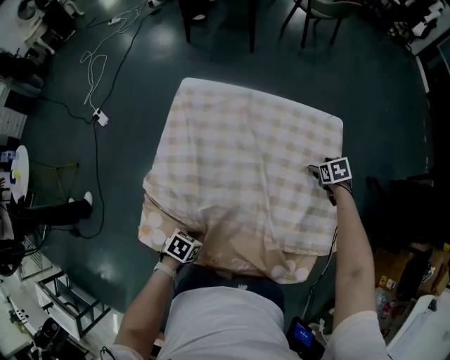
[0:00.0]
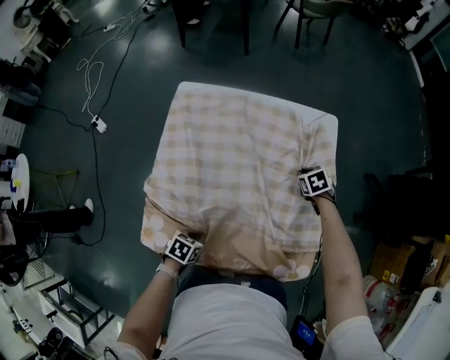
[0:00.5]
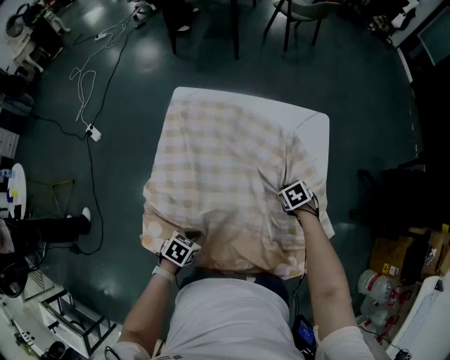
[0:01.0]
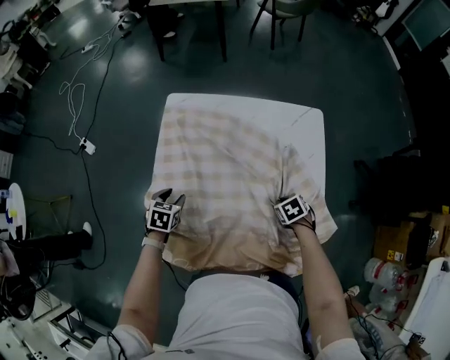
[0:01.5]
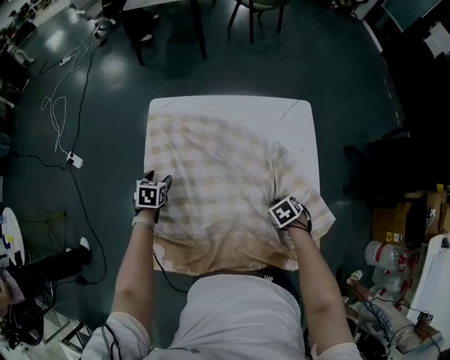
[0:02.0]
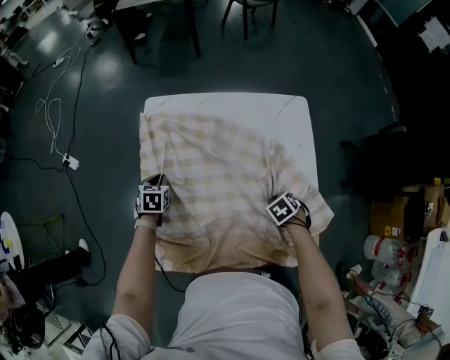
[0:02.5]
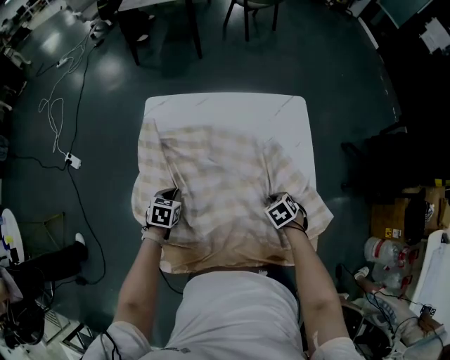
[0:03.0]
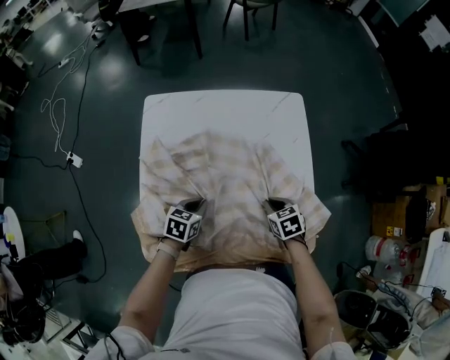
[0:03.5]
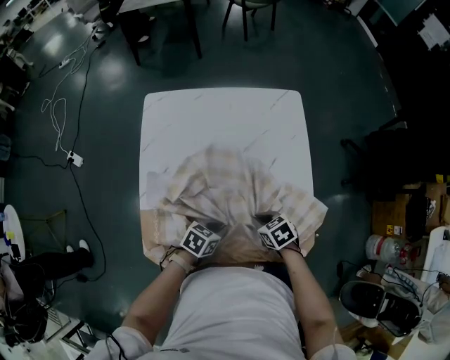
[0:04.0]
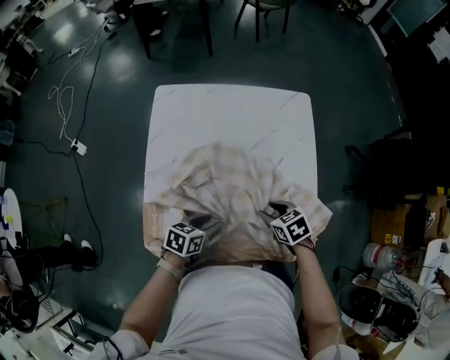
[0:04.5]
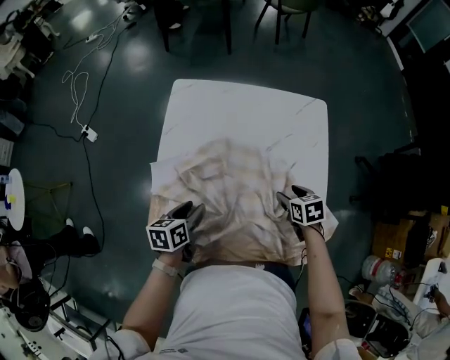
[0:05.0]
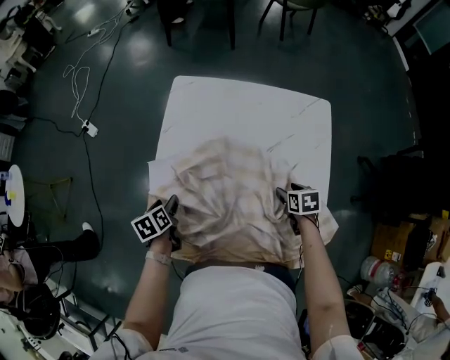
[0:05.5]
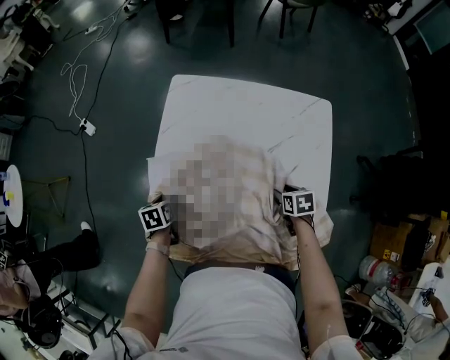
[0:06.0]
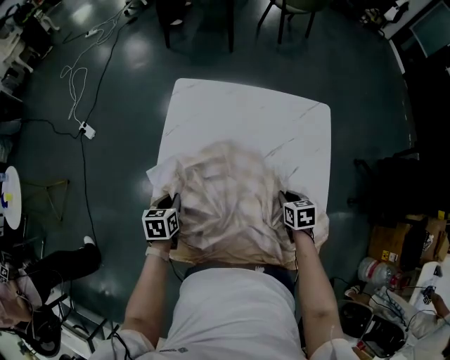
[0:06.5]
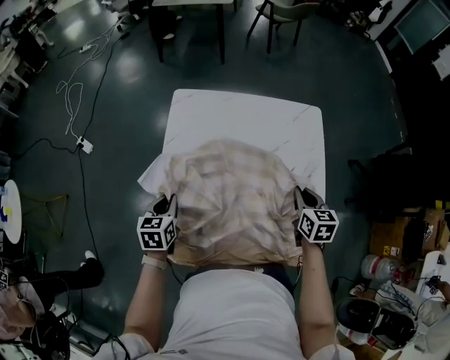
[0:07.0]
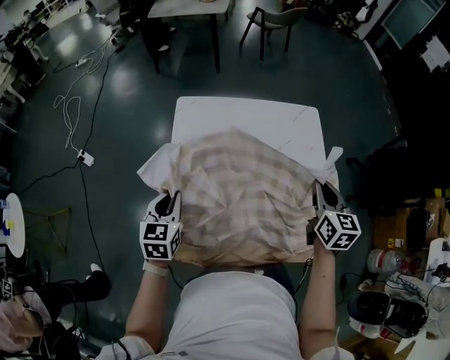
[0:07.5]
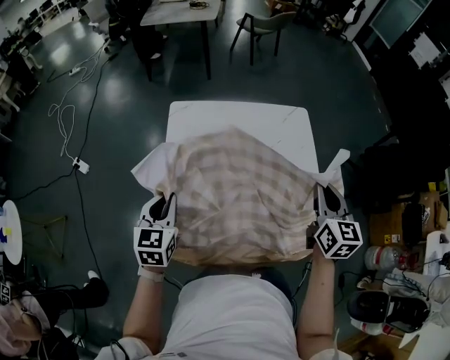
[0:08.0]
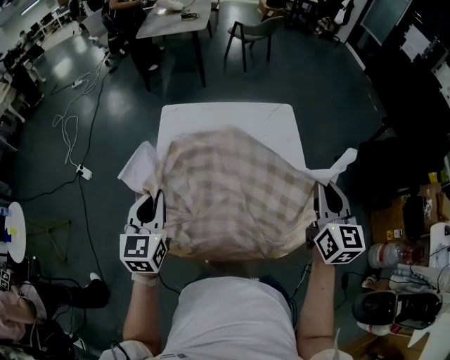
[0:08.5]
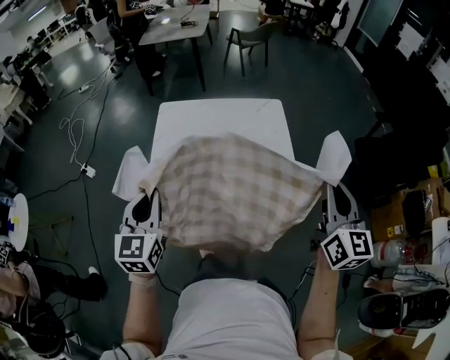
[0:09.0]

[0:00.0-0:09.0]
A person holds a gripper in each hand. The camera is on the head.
0:00.0 to 0:02.0: The right gripper moves about 25 cm, and closes up; the left gripper changes place by approximately 30 cm, turns by about 30 degrees, and opens up.
0:02.0 to 0:04.5: The left gripper ends up about 30 cm from where it was, changes its angle by approximately 40 degrees, and closes its fingers. Meanwhile the right gripper moves roughly 10 cm, changes its angle by about 20 degrees, and opens.
0:04.5 to 0:07.0: The left gripper heads to the left and forward, covering about 20 cm, changes its angle by approximately 40 degrees, and closes up; the right gripper goes some 15 cm upward, forward and to the right, rotates roughly 40 degrees, and closes.
0:07.0 to 0:09.0: Both grippers travel together upward and backward, roughly 30 cm. The right gripper points its fingers roughly 40 degrees further upward, while the left gripper changes its angle by approximately 30 degrees.

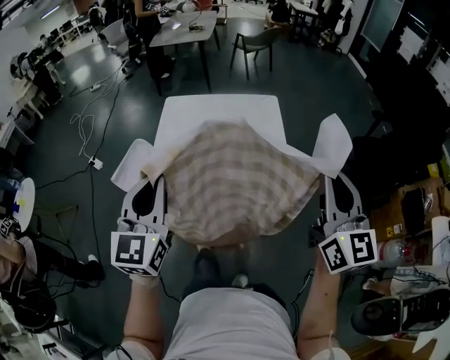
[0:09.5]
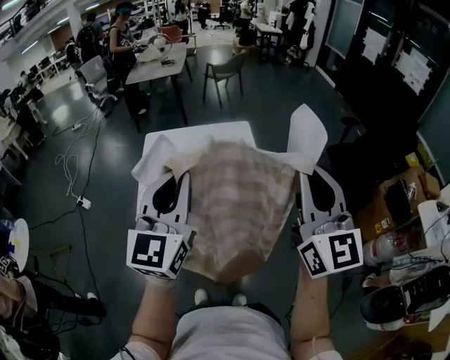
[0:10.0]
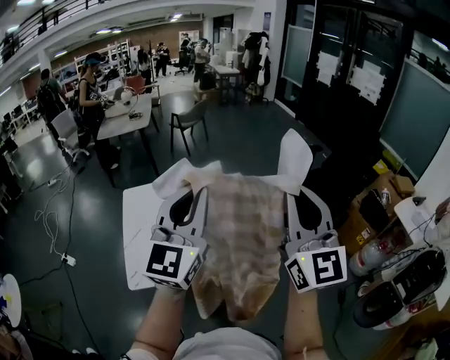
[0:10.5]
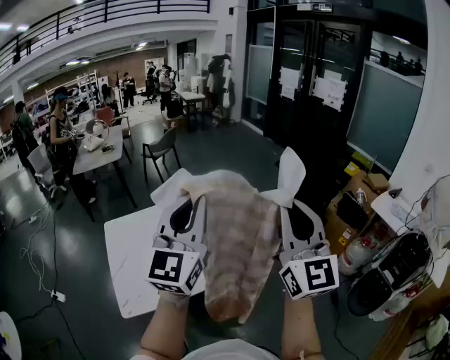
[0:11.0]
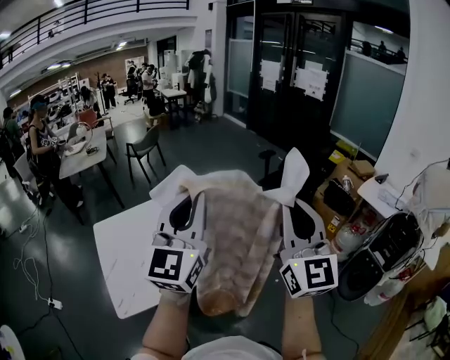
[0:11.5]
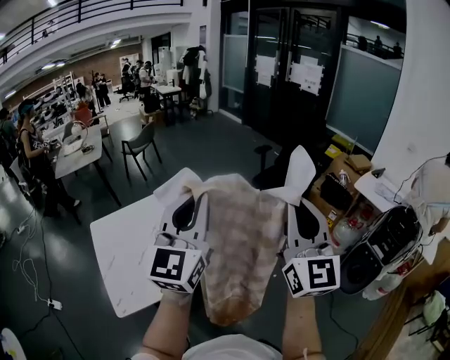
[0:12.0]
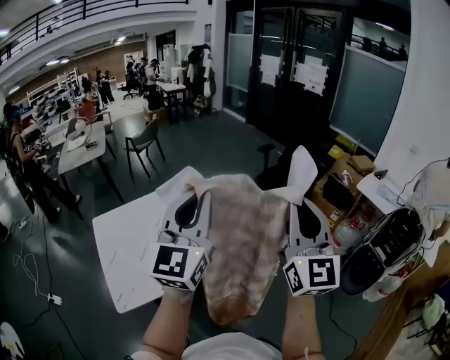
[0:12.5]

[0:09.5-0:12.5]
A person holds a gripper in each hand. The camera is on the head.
0:09.5 to 0:11.0: Both grippers move upward, approximately 20 cm. The left gripper turns by roughly 40 degrees, while the right gripper turns by about 30 degrees.
0:11.0 to 0:12.5: The left gripper shifts by about 5 cm. Meanwhile the right gripper shifts about 5 cm to the right.

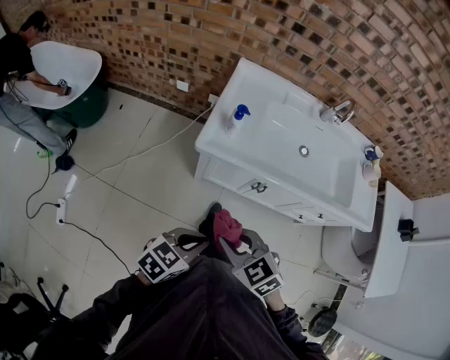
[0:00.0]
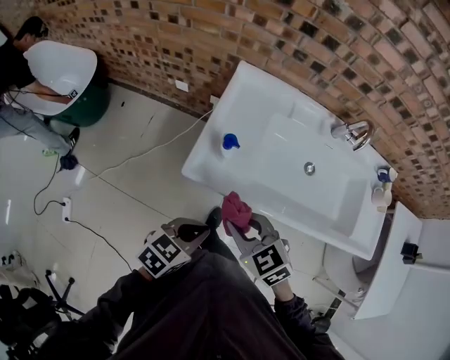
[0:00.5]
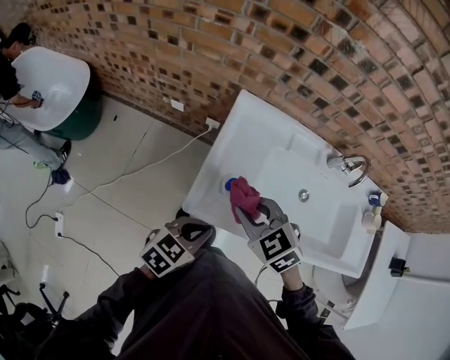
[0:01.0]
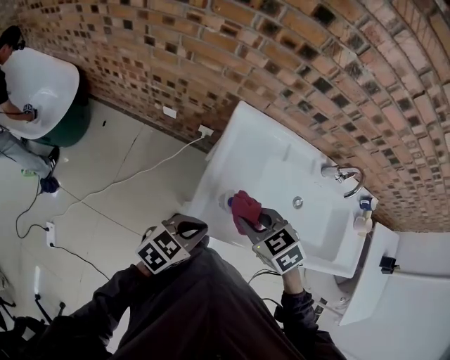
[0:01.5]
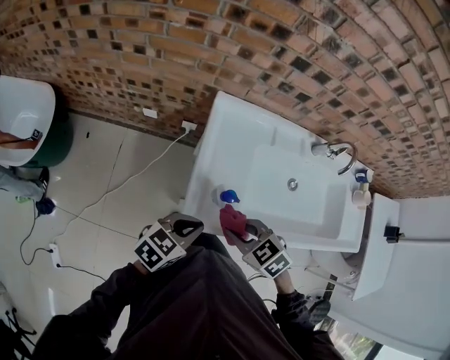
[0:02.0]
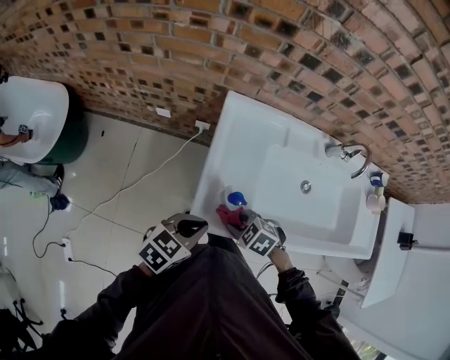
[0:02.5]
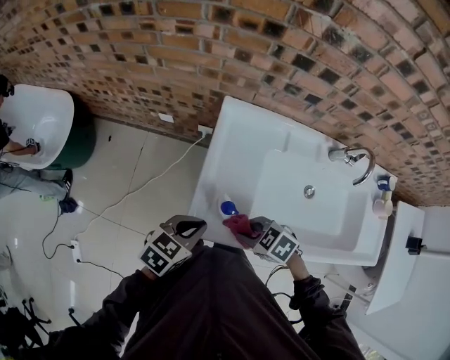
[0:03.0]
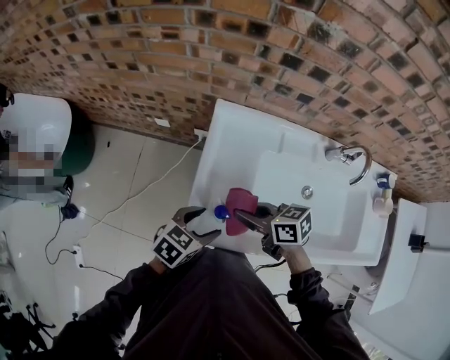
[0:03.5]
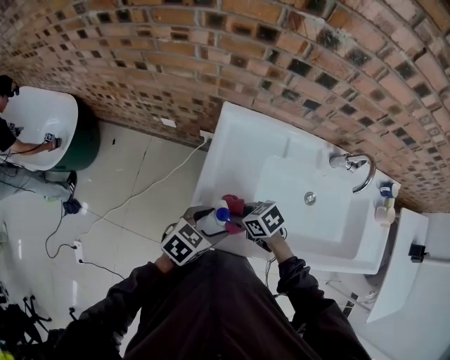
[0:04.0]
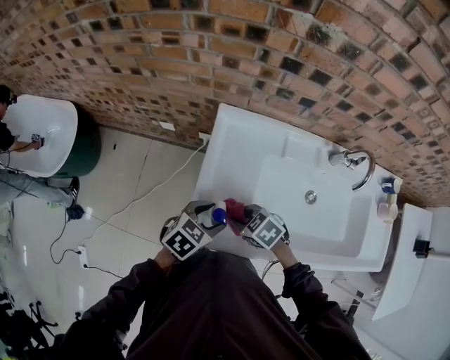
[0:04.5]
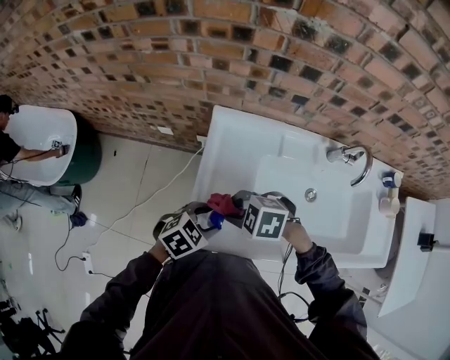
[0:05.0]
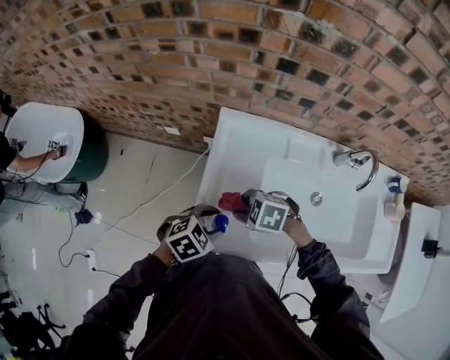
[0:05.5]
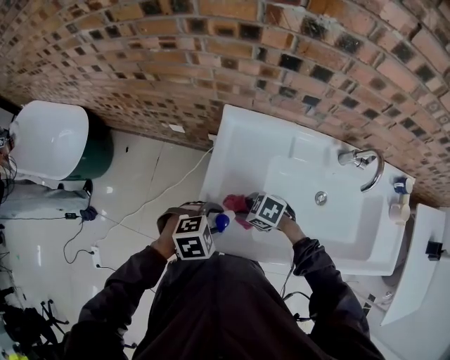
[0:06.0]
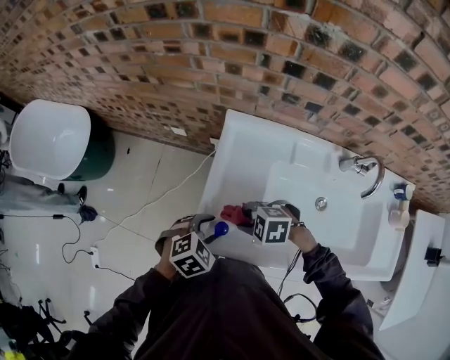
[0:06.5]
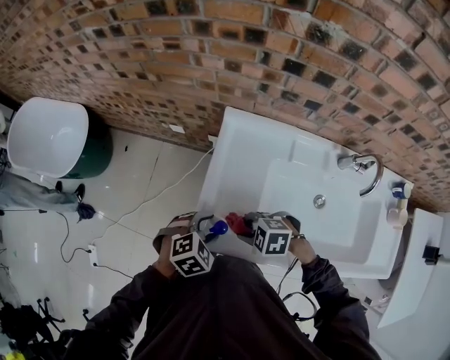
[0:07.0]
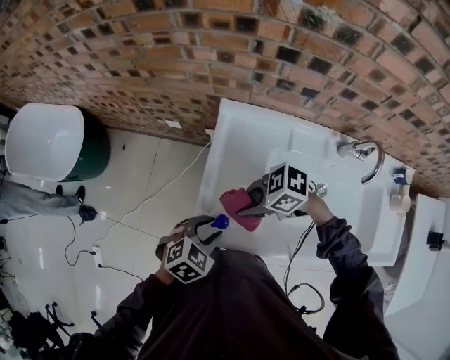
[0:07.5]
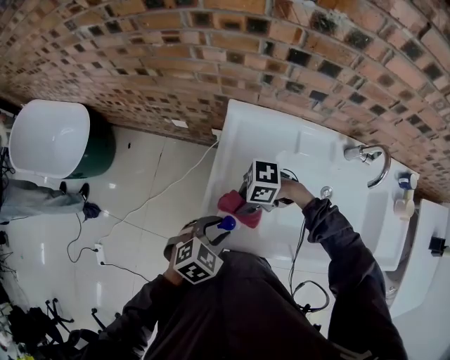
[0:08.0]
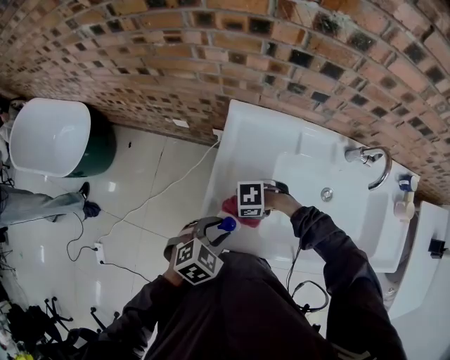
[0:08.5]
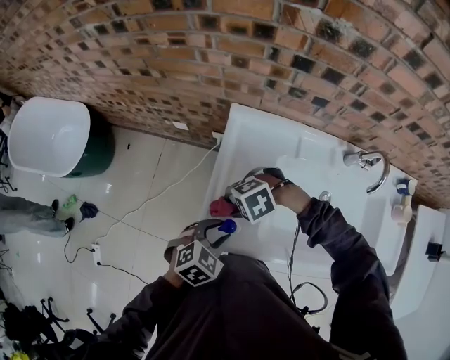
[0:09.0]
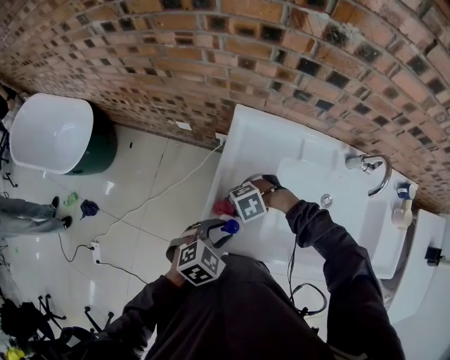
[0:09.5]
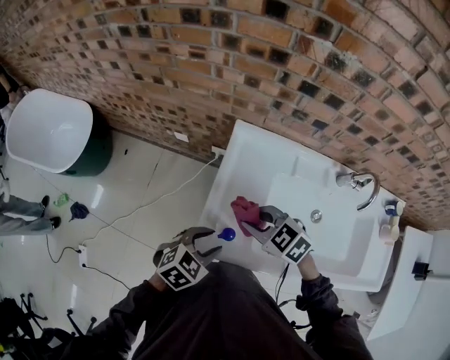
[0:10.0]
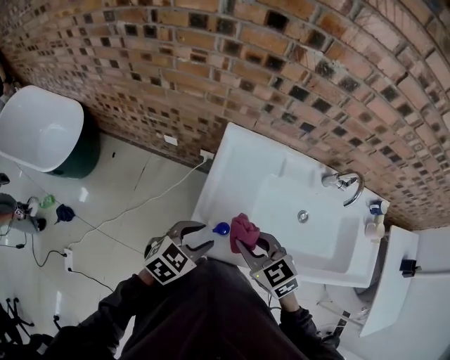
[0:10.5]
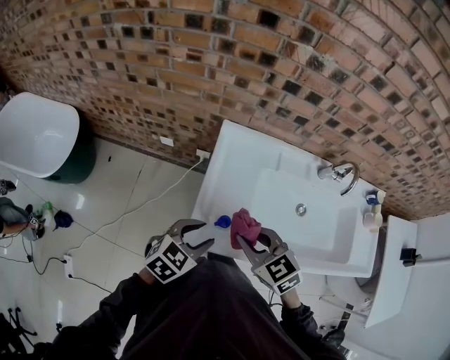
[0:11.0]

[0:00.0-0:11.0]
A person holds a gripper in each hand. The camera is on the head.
0:00.0 to 0:02.0: The right gripper ends up roughly 30 cm from where it was. The left gripper moves approximately 35 cm.
0:02.0 to 0:03.5: The left gripper shifts by about 10 cm, and opens, while the right gripper reaches some 10 cm downward, then returns, and changes its angle by some 40 degrees.
0:03.5 to 0:05.5: The left gripper rotates some 20 degrees. The right gripper swings up and down, some 10 cm each way, with 2 reversals, and changes its angle by approximately 60 degrees.
0:05.5 to 0:07.5: The right gripper goes approximately 5 cm upward, and swivels approximately 30 degrees.
0:07.5 to 0:09.0: The right gripper reaches about 15 cm downward, then returns, and twists about 40 degrees counterclockwise, seen from behind.
0:09.0 to 0:11.0: The right gripper moves upward, some 10 cm, and rotates roughly 80 degrees. The left gripper travels upward by approximately 5 cm.

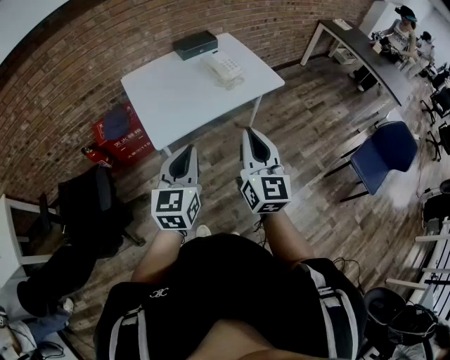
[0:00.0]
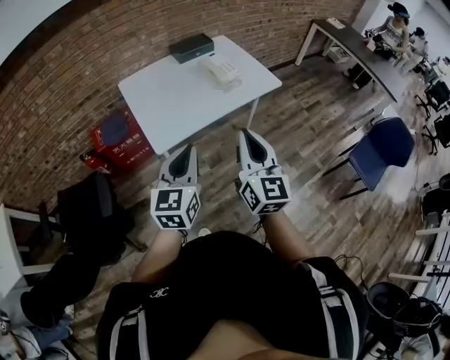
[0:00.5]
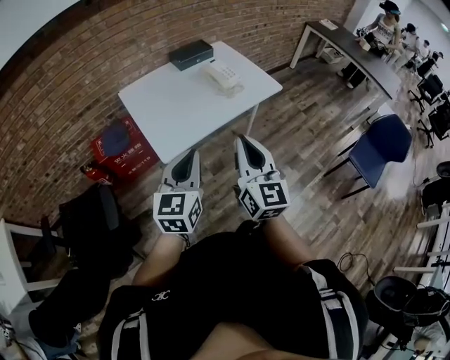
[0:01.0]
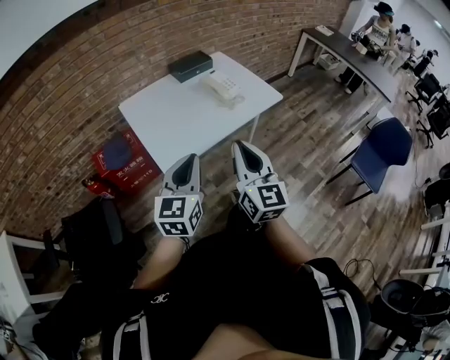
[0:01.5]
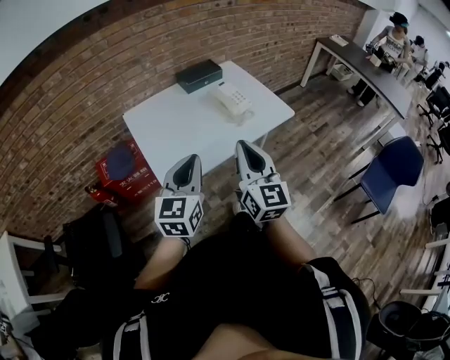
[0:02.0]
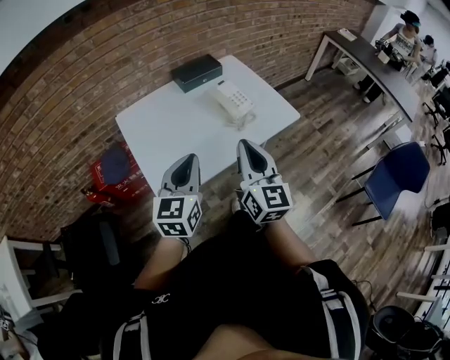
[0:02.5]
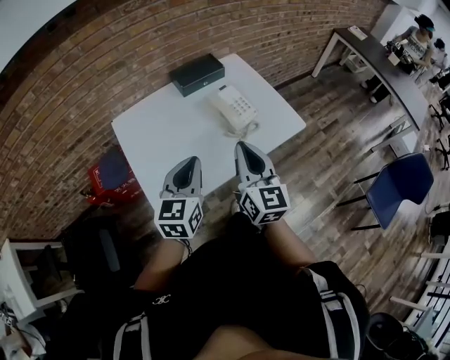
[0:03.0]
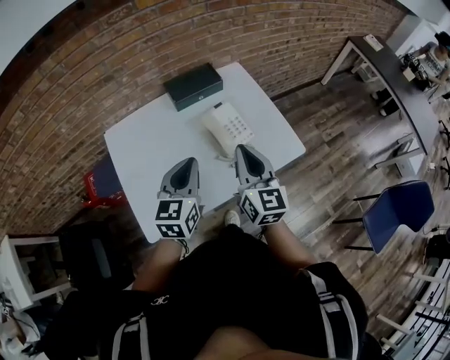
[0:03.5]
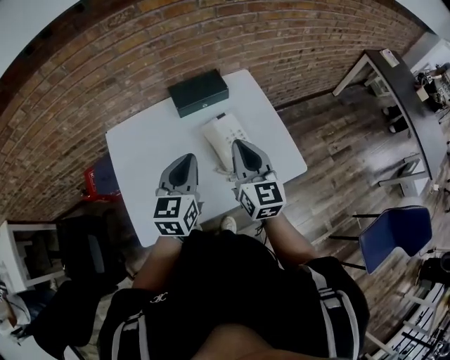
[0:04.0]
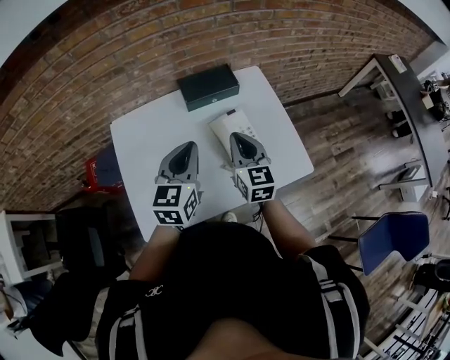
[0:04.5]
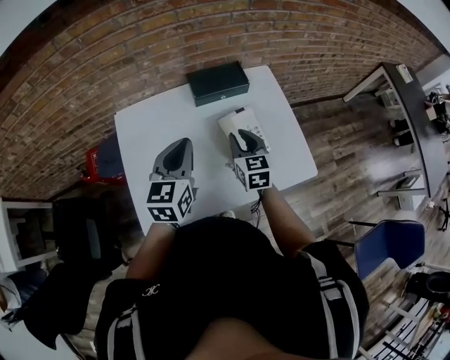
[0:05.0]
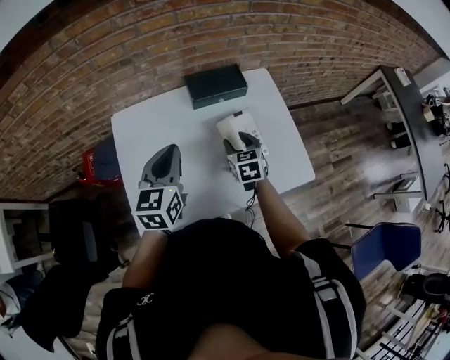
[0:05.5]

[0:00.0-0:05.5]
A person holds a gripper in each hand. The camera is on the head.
0:00.0 to 0:02.0: The left gripper travels forward by roughly 15 cm. Meanwhile the right gripper moves forward and to the left, approximately 15 cm.
0:02.0 to 0:03.5: Both grippers travel together forward, some 30 cm.
0:03.5 to 0:05.5: The left gripper travels forward and to the left by approximately 10 cm. The right gripper moves downward and forward, some 25 cm, angles its fingers downward, by about 30 degrees, and opens its fingers.
